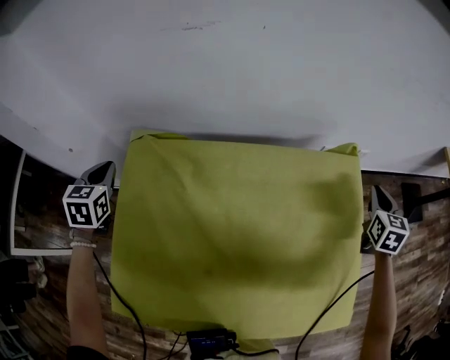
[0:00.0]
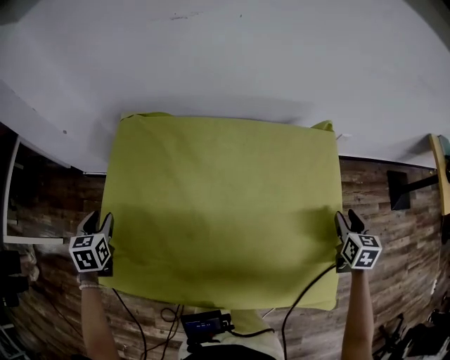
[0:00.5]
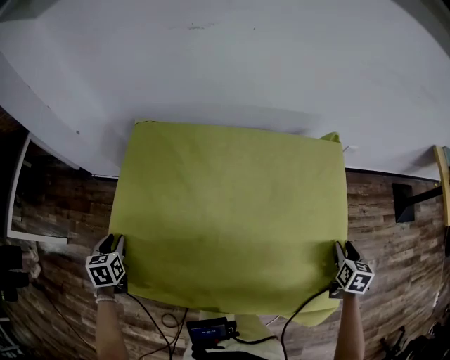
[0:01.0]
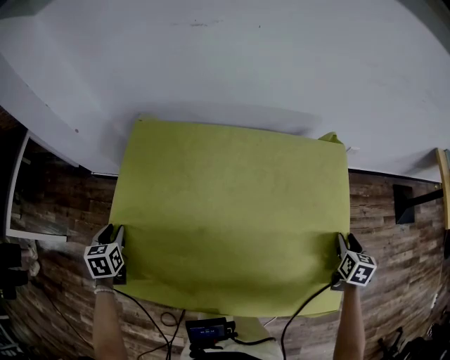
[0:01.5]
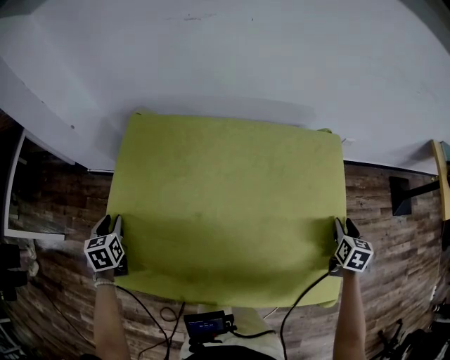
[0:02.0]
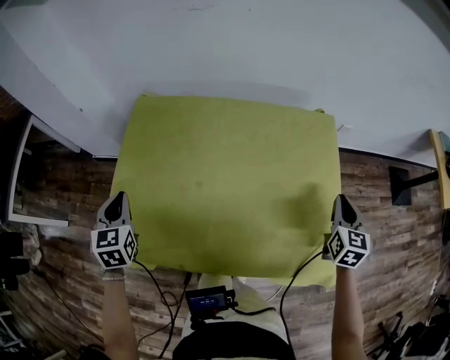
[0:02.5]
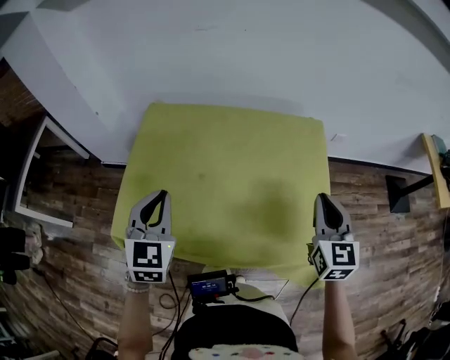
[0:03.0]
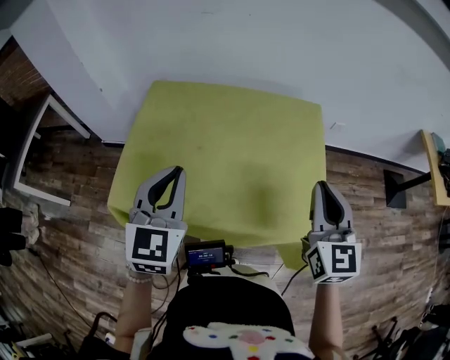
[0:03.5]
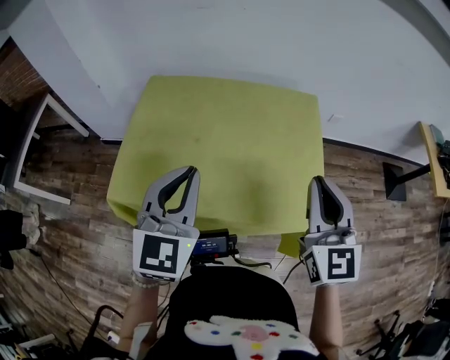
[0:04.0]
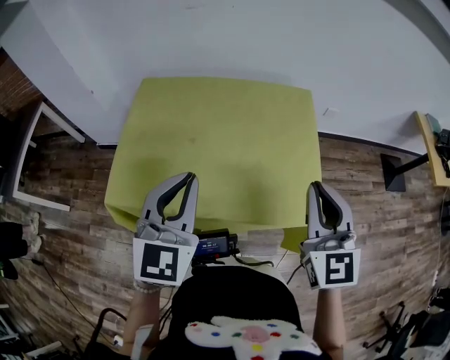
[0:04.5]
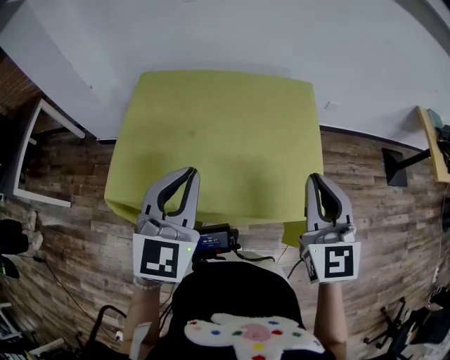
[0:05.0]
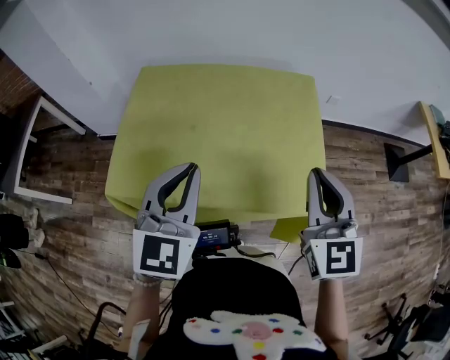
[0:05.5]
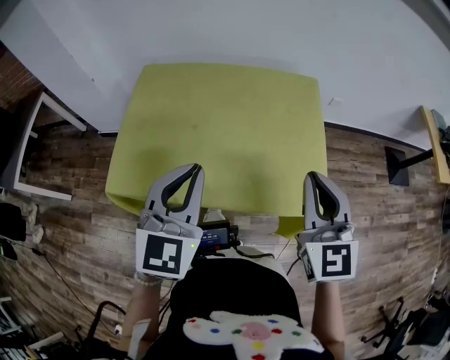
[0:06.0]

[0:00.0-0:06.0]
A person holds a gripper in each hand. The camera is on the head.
0:00.0 to 0:02.0: Both grippers travel together backward and downward, approximately 25 cm. The left gripper rotates some 20 degrees, and opens its fingers. Meanwhile the right gripper opens its fingers.
0:02.0 to 0:04.0: The right gripper goes about 40 cm upward, to the left and backward, points its fingers roughly 40 degrees further upward, and closes its fingers. Meanwhile the left gripper shifts about 50 cm to the right, upward and backward, tips its fingers upward by roughly 40 degrees, and closes up.
0:04.0 to 0:06.0: The grippers move only a little.

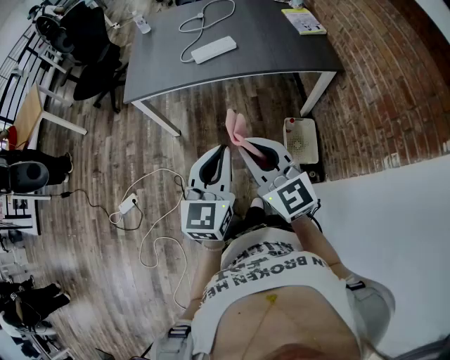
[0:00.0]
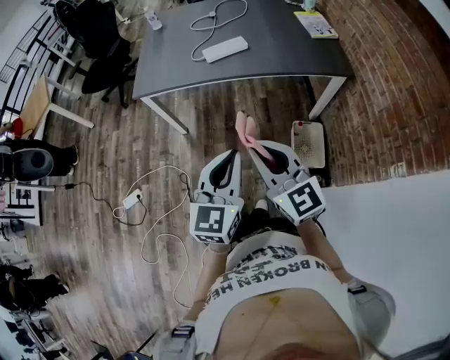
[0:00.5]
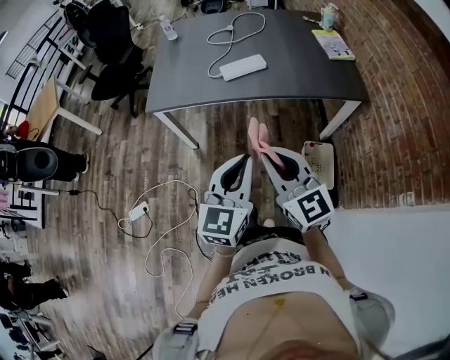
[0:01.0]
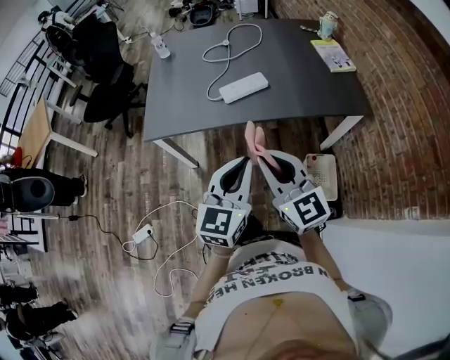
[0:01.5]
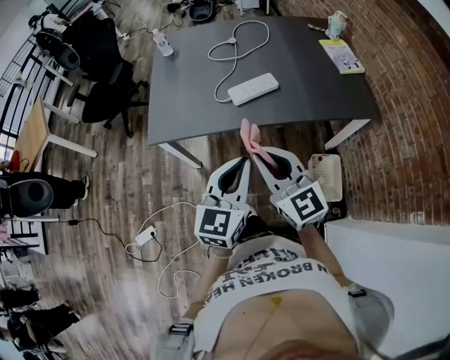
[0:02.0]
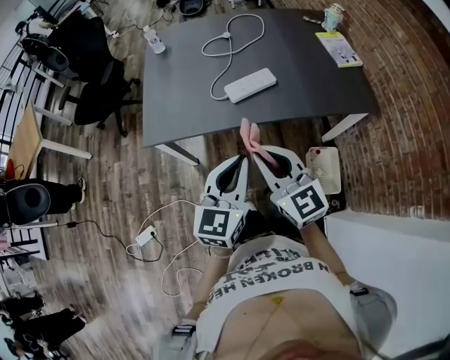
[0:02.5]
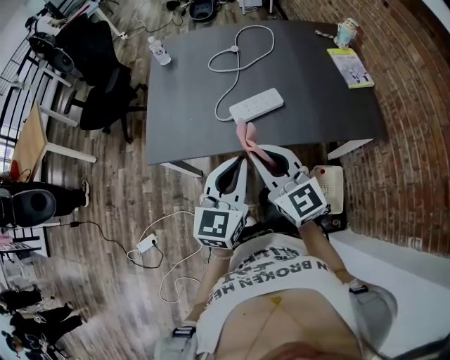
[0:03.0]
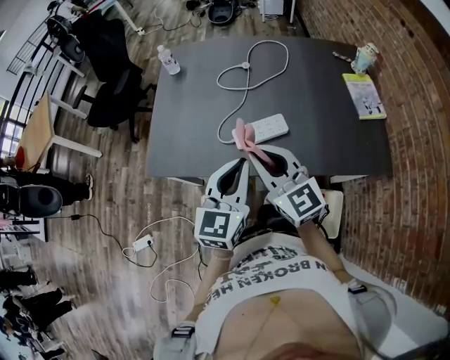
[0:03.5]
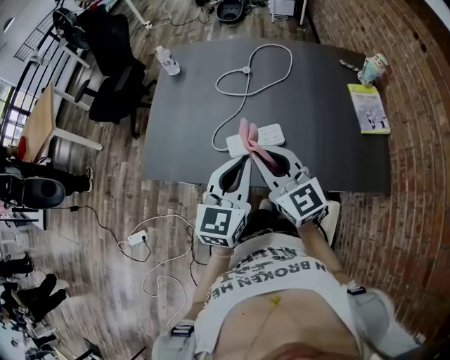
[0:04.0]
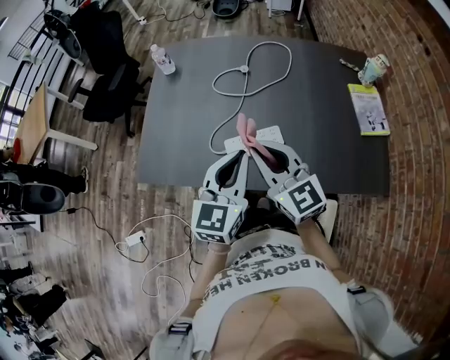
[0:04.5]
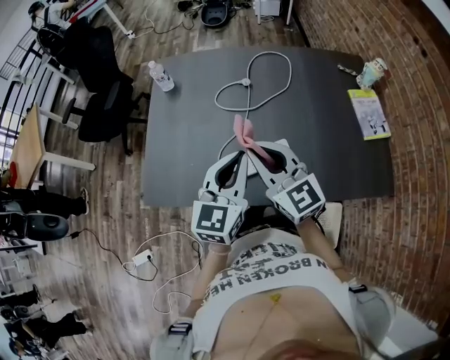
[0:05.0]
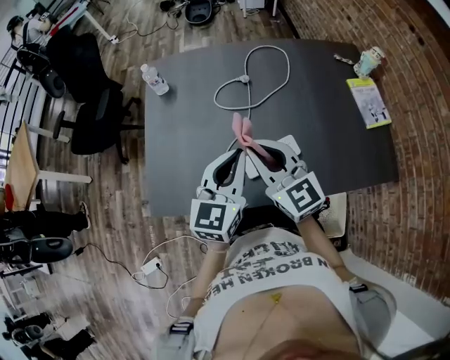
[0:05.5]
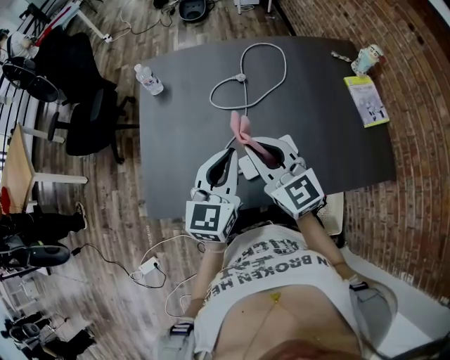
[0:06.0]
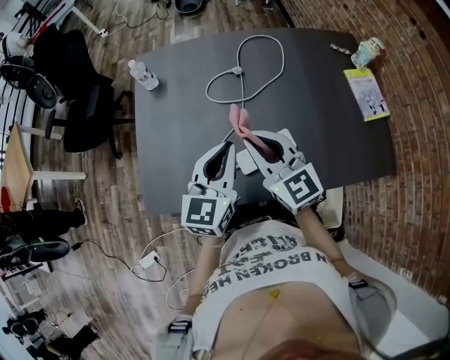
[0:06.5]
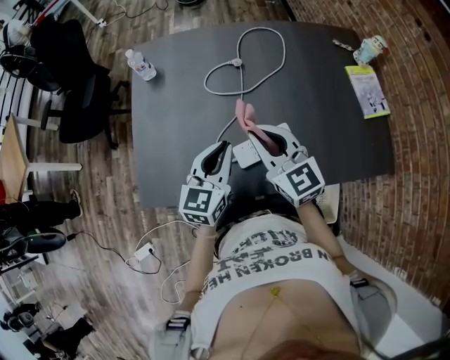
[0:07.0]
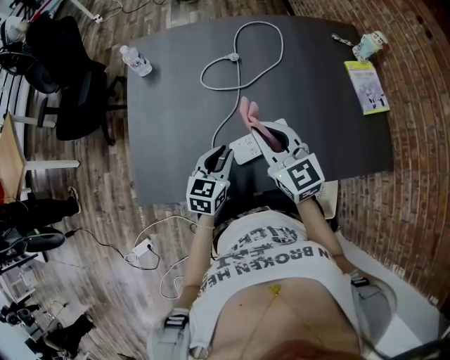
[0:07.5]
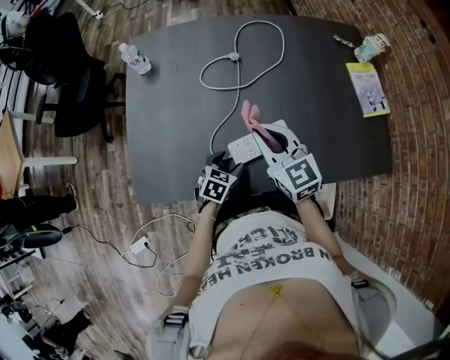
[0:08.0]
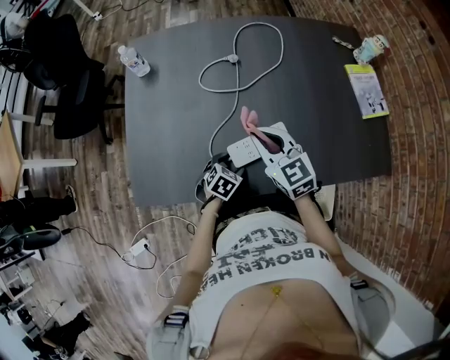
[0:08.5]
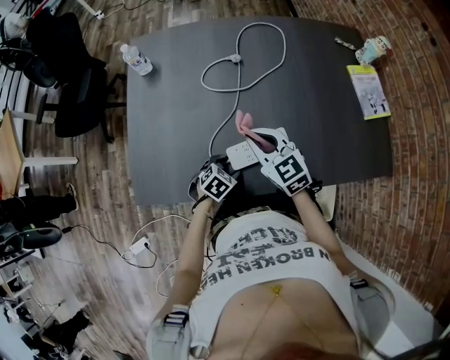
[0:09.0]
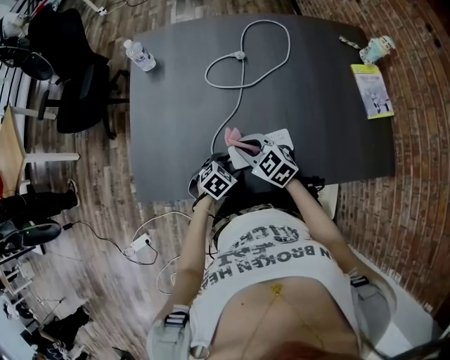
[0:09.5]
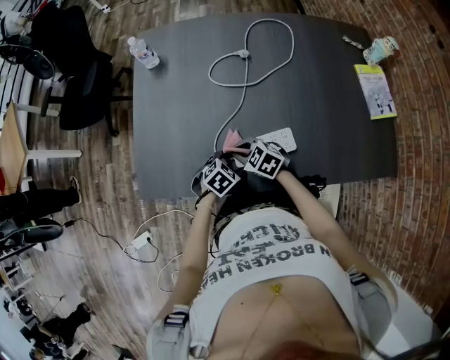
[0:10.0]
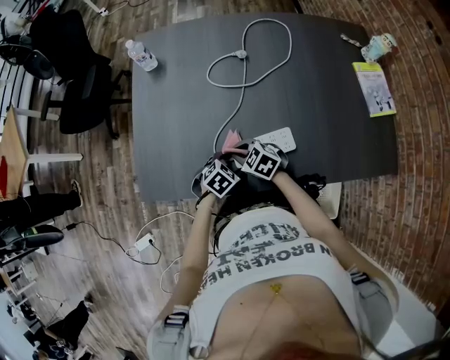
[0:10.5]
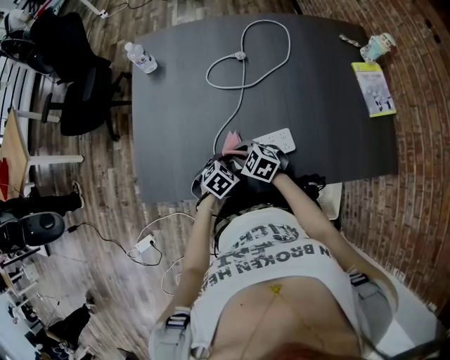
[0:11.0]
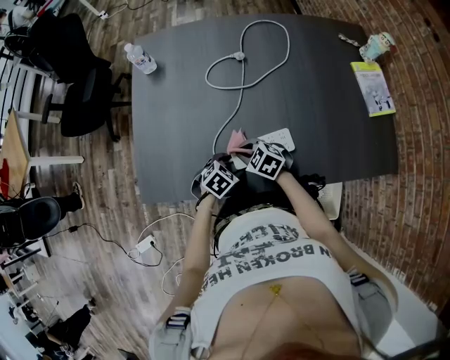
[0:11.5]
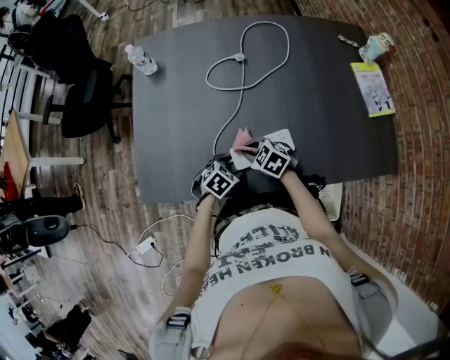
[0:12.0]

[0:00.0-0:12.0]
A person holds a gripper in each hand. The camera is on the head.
0:00.0 to 0:02.0: The grippers both shift forward by some 25 cm.
0:02.0 to 0:04.0: The left gripper shifts approximately 30 cm forward and to the right, while the right gripper goes roughly 25 cm forward.
0:04.0 to 0:06.0: The grippers both shift forward and to the left by some 15 cm.
0:06.0 to 0:08.0: The left gripper heads downward, covering approximately 30 cm, tilts its fingers roughly 40 degrees downward, and opens up. The right gripper shifts roughly 10 cm downward and to the right.
0:08.0 to 0:10.0: The right gripper is displaced downward by roughly 20 cm, and turns by some 50 degrees.
0:10.0 to 0:12.0: There are only small adjustments of the grippers.

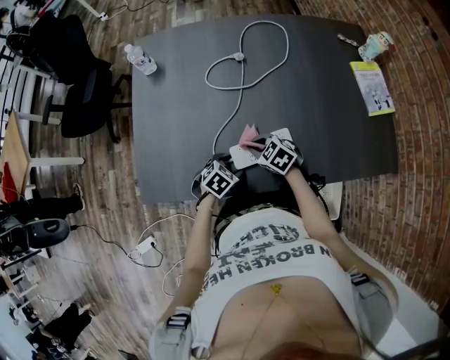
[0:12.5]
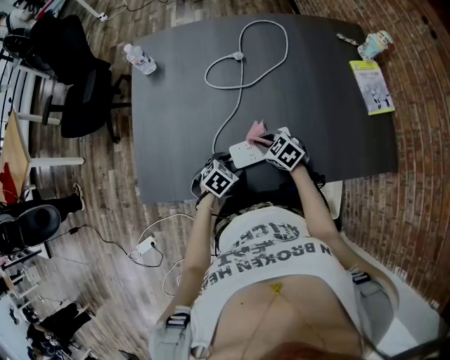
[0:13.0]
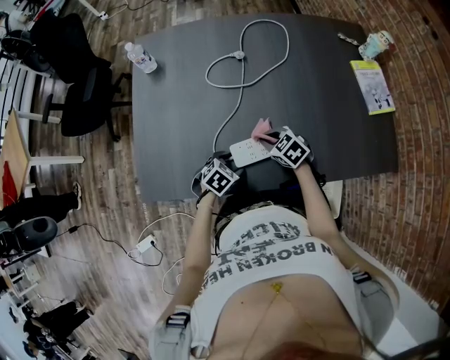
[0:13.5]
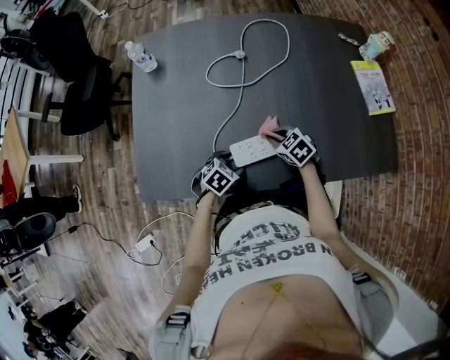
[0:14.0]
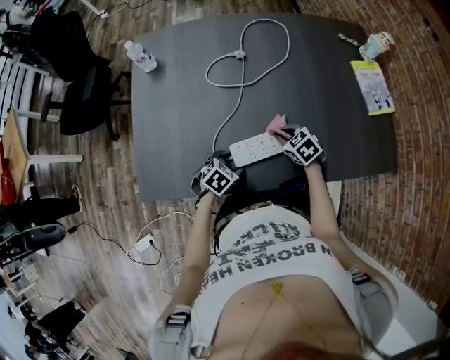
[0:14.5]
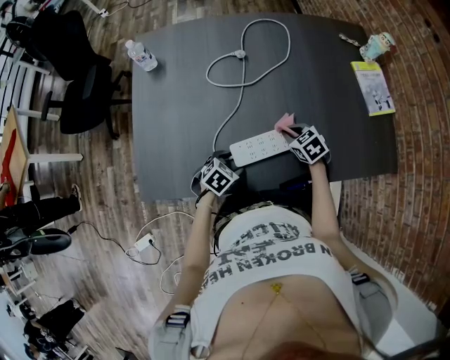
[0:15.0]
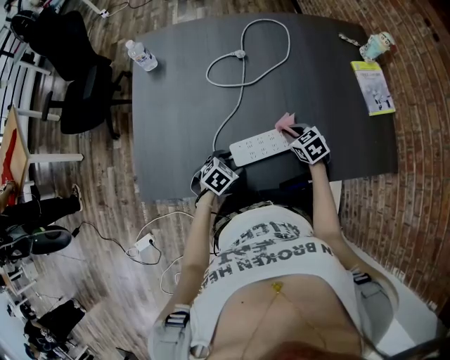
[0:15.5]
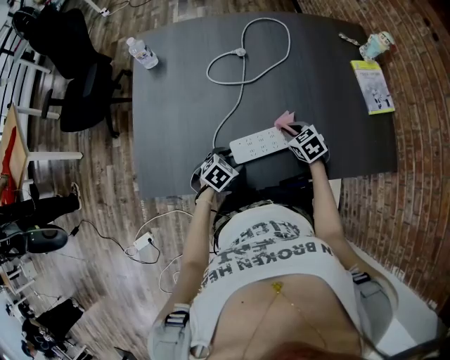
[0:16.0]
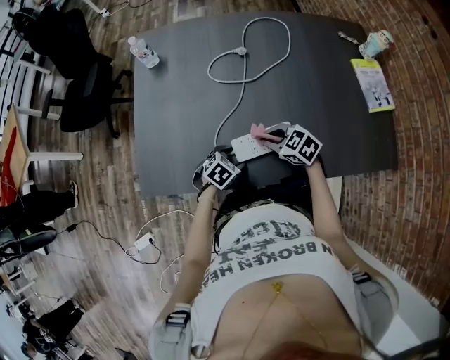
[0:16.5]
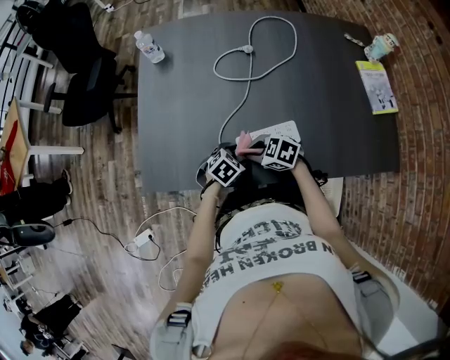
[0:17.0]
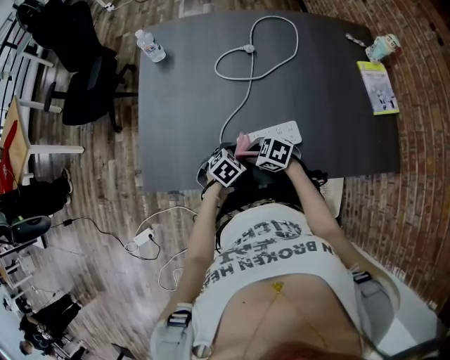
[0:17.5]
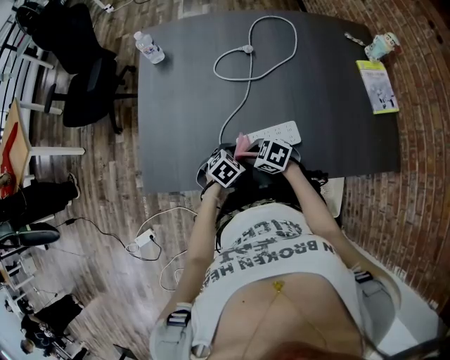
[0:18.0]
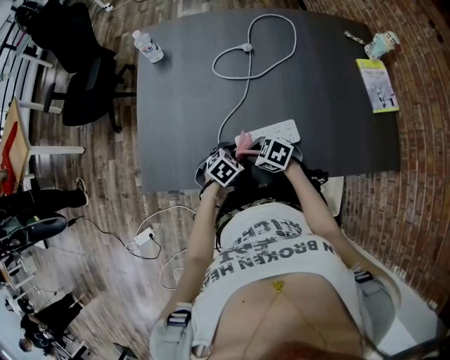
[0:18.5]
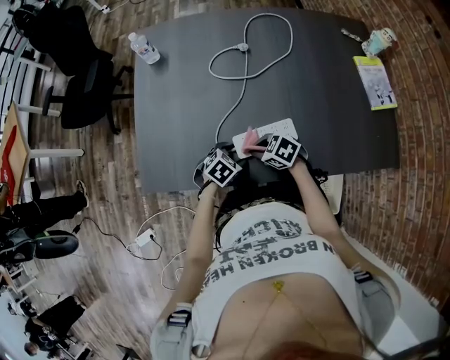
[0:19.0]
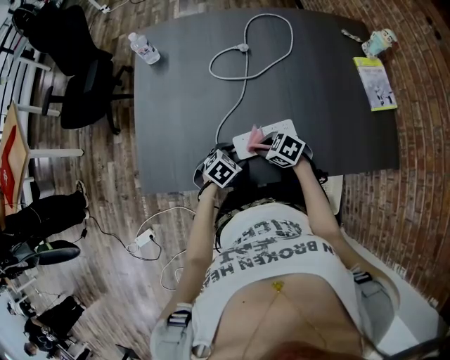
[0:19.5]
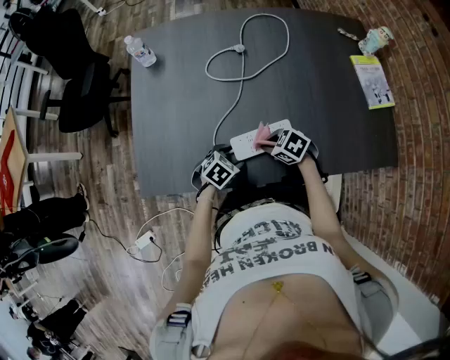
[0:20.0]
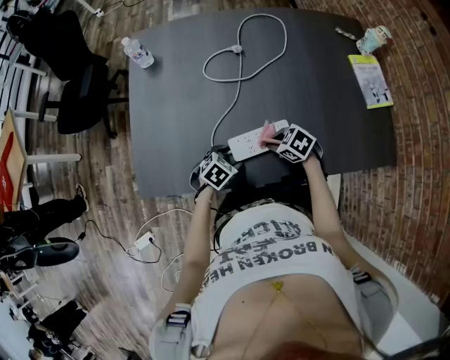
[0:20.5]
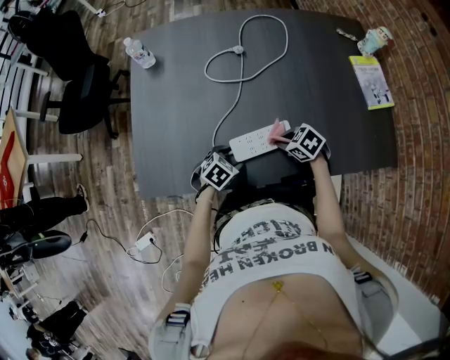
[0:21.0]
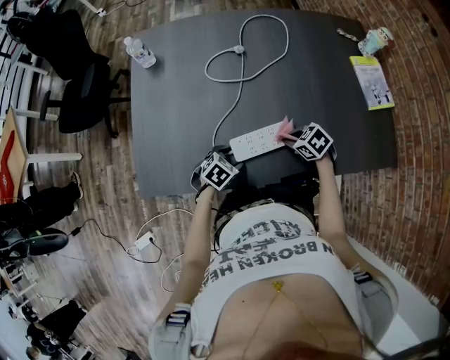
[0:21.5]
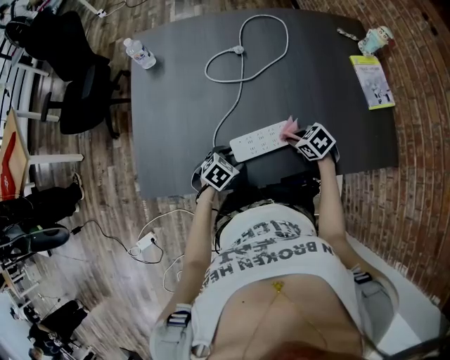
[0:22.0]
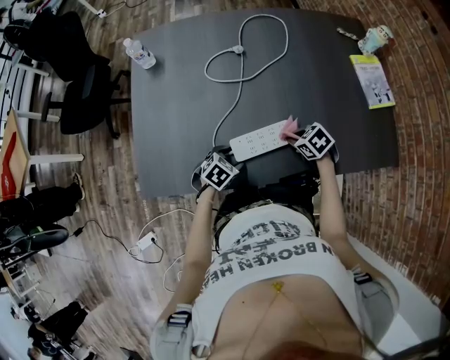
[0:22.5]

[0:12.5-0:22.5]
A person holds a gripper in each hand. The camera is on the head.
0:12.5 to 0:14.5: The right gripper ends up approximately 10 cm from where it was.
0:14.5 to 0:16.5: The right gripper changes place by some 10 cm.
0:16.5 to 0:18.5: The right gripper ends up approximately 10 cm from where it was.
0:18.5 to 0:20.5: The right gripper ends up roughly 10 cm from where it was.
0:20.5 to 0:22.5: The right gripper shifts by some 10 cm.
